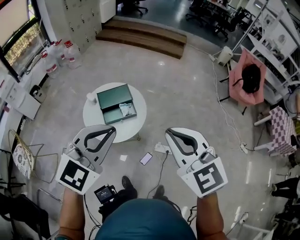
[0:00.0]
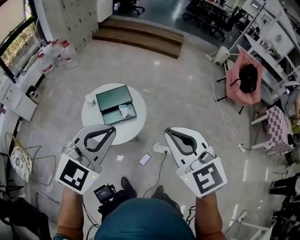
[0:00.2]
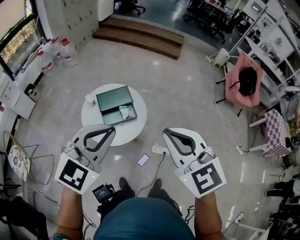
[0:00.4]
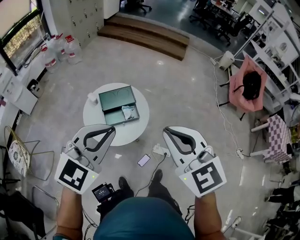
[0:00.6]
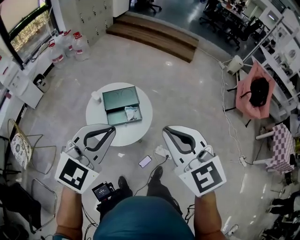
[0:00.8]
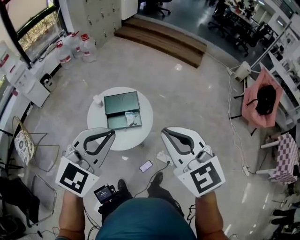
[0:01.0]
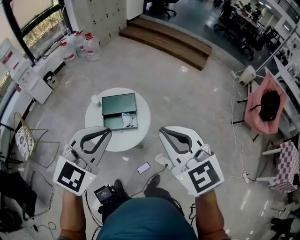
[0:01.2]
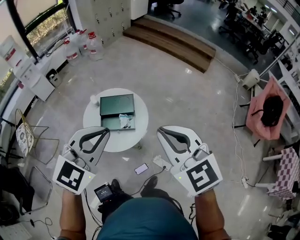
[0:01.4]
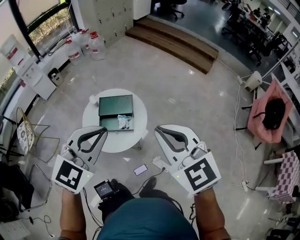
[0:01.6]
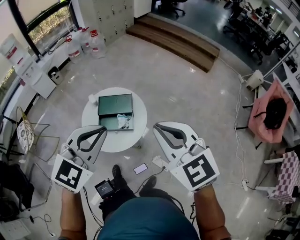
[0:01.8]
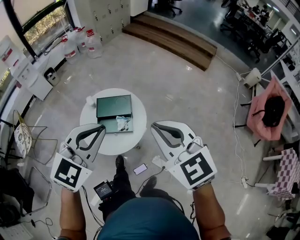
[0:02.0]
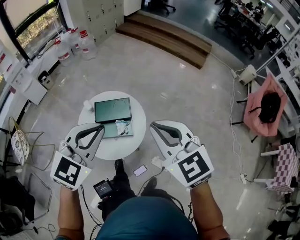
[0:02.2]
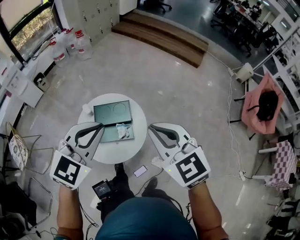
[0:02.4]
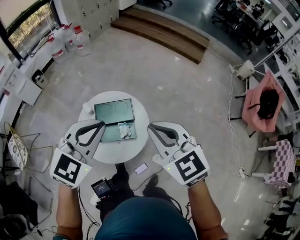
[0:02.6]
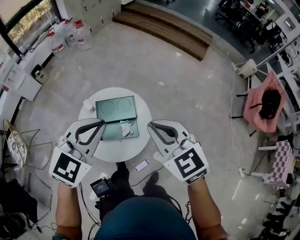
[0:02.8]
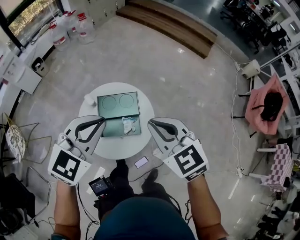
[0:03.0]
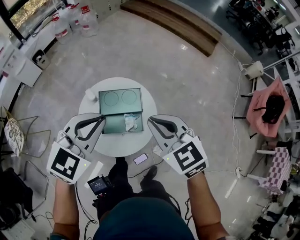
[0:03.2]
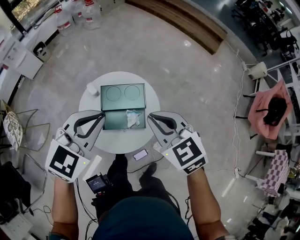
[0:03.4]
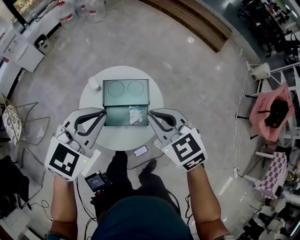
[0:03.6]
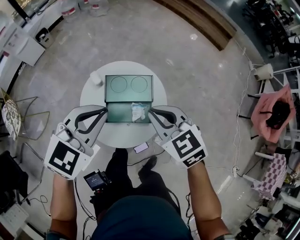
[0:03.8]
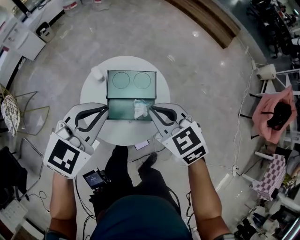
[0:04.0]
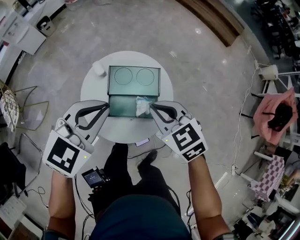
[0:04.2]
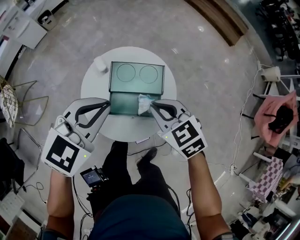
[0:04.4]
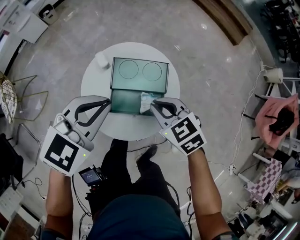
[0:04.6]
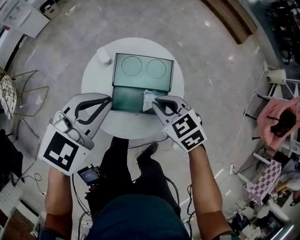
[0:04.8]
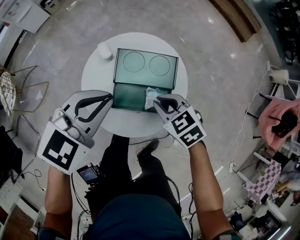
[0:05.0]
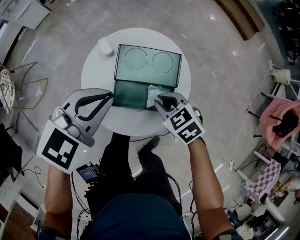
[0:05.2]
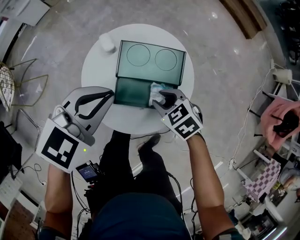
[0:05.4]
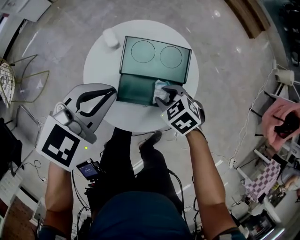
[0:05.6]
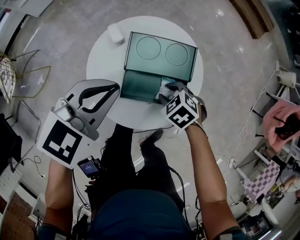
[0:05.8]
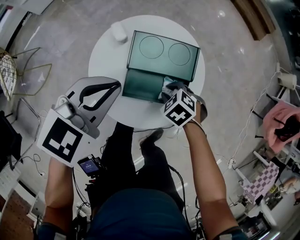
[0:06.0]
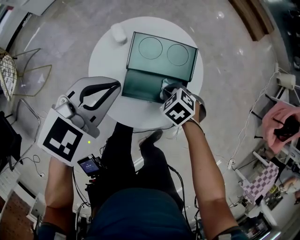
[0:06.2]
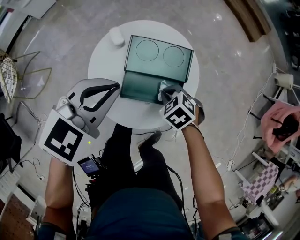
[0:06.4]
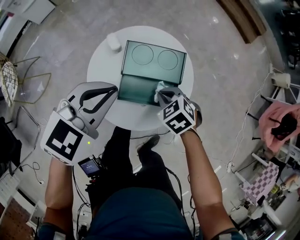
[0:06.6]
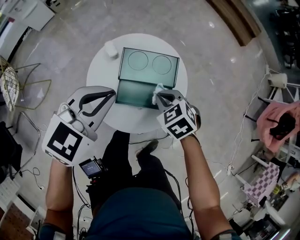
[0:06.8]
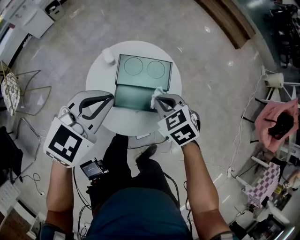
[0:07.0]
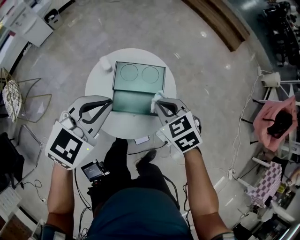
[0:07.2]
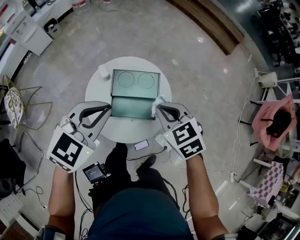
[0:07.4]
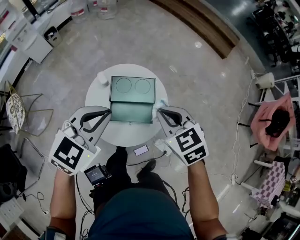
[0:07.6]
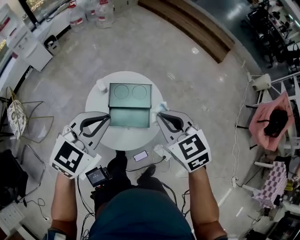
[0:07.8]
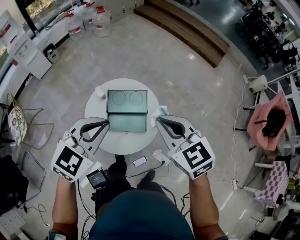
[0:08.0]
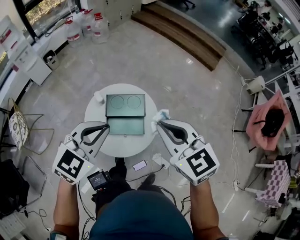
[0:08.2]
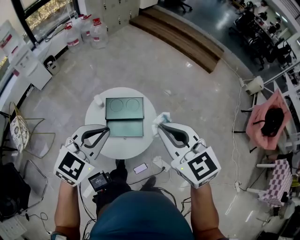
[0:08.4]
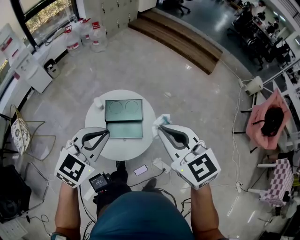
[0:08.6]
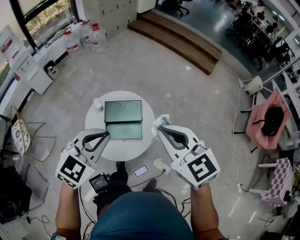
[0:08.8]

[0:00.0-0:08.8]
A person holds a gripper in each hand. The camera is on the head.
0:00.0 to 0:01.4: Both grippers travel together forward and to the right, some 20 cm.
0:01.4 to 0:03.0: The right gripper heads forward, downward and to the left, covering roughly 30 cm. The left gripper heads forward, to the left and downward, covering approximately 30 cm.
0:03.0 to 0:04.4: Both grippers move downward and to the left, approximately 25 cm. The right gripper swivels approximately 20 degrees.
0:04.4 to 0:05.8: The left gripper is displaced downward by roughly 10 cm; the right gripper heads downward, covering roughly 25 cm, rotates some 30 degrees, and opens.
0:05.8 to 0:07.4: The right gripper heads upward, covering about 30 cm, rotates about 30 degrees, and closes; the left gripper shifts approximately 20 cm upward.
0:07.4 to 0:08.8: The right gripper goes about 30 cm upward and backward, and rotates about 30 degrees. Meanwhile the left gripper travels upward, backward and to the right by about 20 cm.

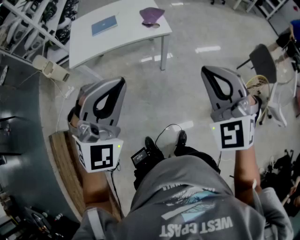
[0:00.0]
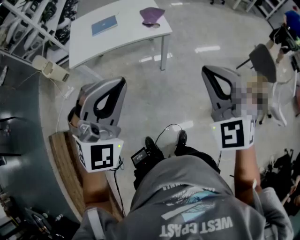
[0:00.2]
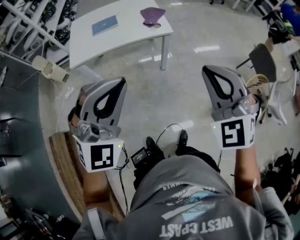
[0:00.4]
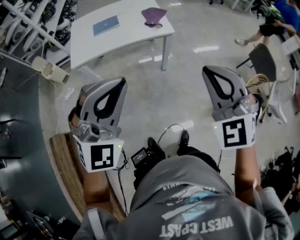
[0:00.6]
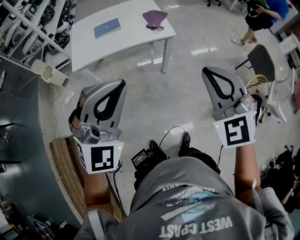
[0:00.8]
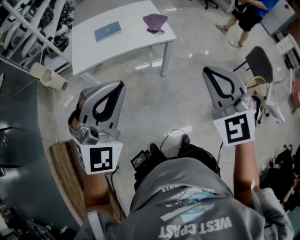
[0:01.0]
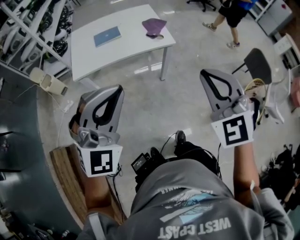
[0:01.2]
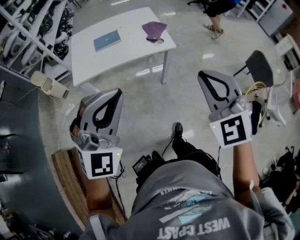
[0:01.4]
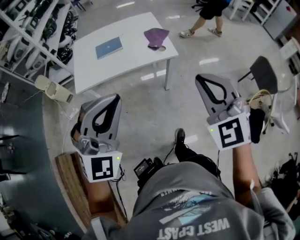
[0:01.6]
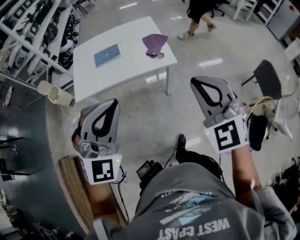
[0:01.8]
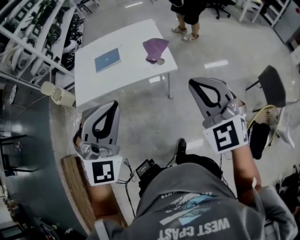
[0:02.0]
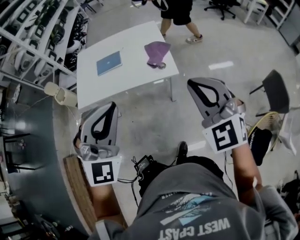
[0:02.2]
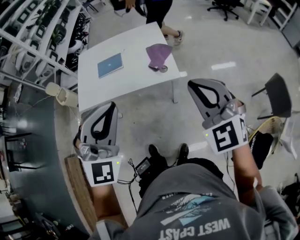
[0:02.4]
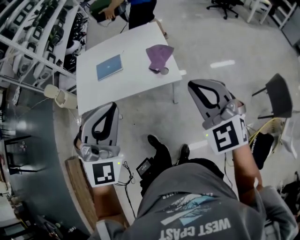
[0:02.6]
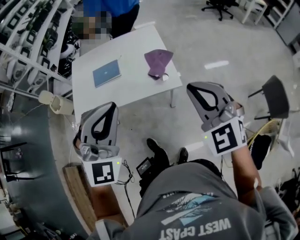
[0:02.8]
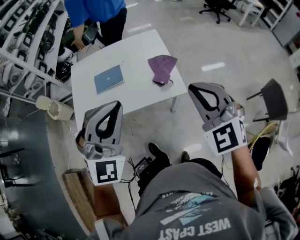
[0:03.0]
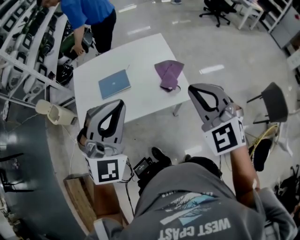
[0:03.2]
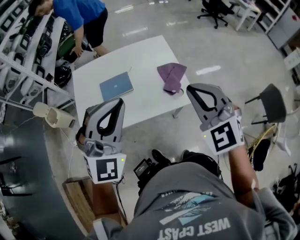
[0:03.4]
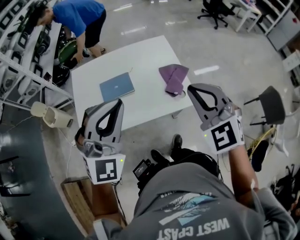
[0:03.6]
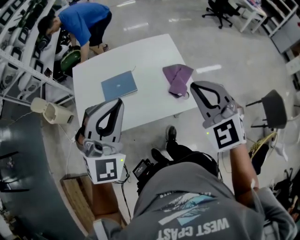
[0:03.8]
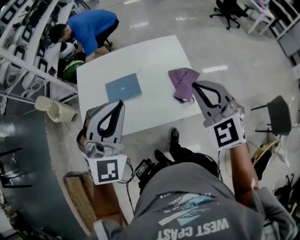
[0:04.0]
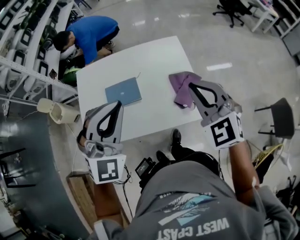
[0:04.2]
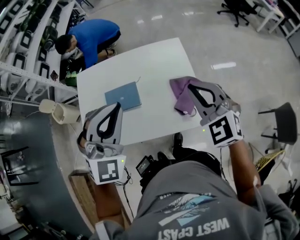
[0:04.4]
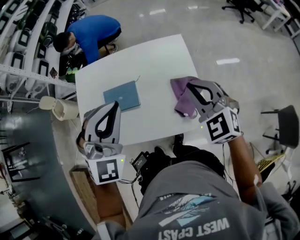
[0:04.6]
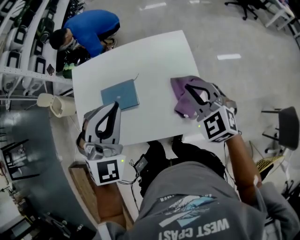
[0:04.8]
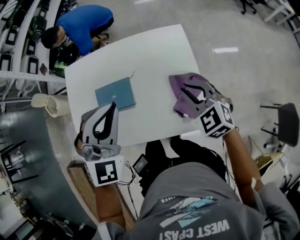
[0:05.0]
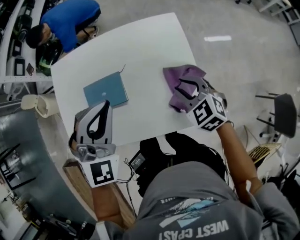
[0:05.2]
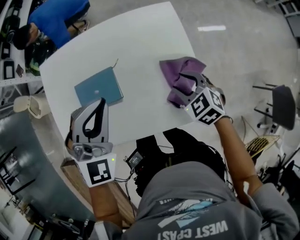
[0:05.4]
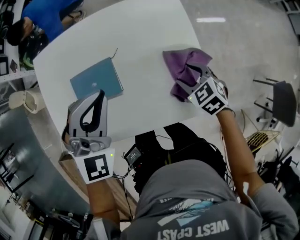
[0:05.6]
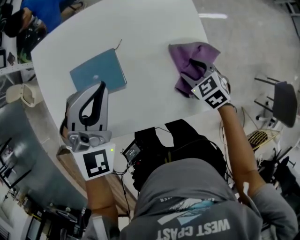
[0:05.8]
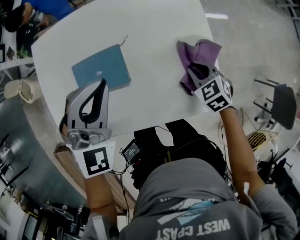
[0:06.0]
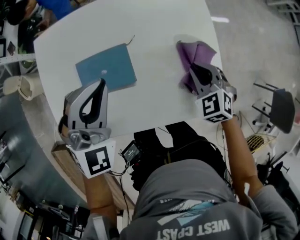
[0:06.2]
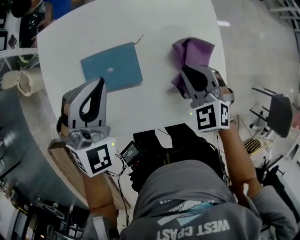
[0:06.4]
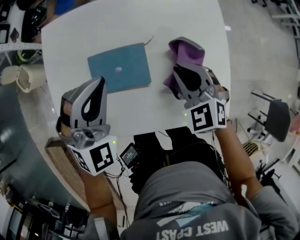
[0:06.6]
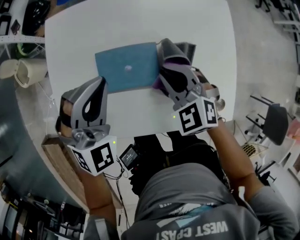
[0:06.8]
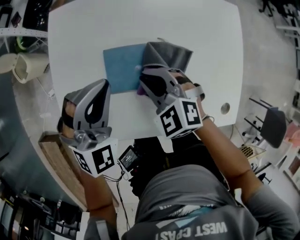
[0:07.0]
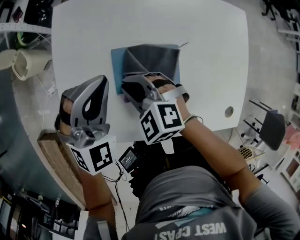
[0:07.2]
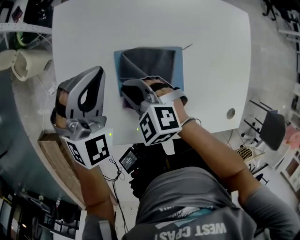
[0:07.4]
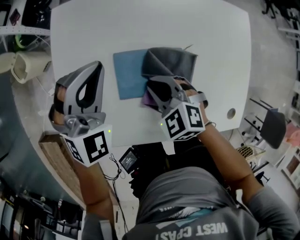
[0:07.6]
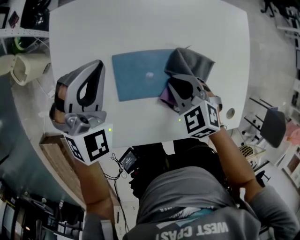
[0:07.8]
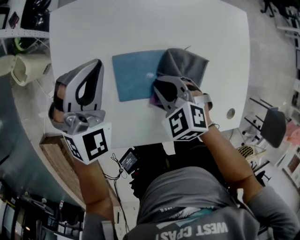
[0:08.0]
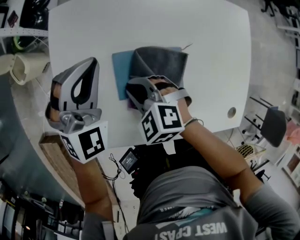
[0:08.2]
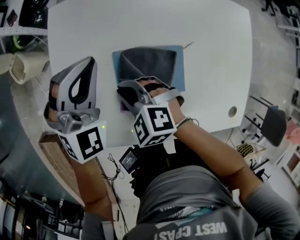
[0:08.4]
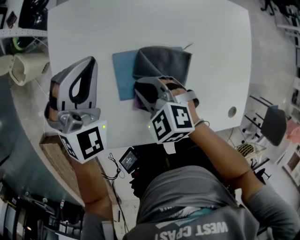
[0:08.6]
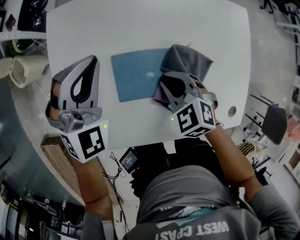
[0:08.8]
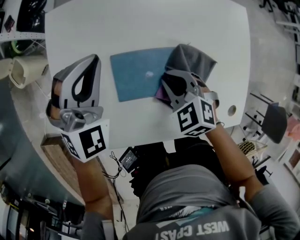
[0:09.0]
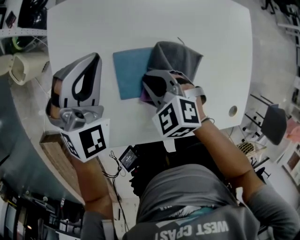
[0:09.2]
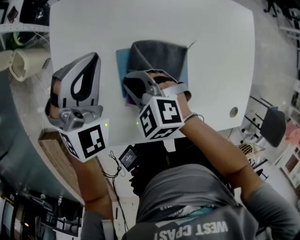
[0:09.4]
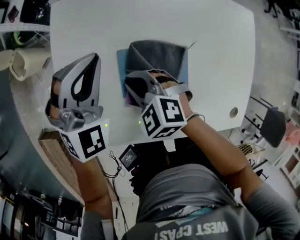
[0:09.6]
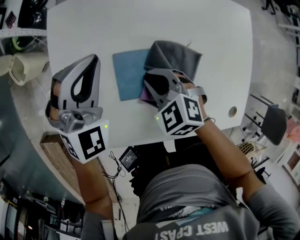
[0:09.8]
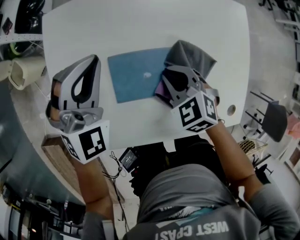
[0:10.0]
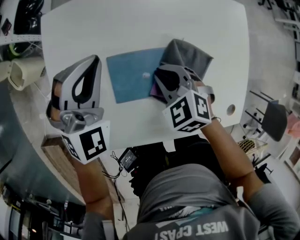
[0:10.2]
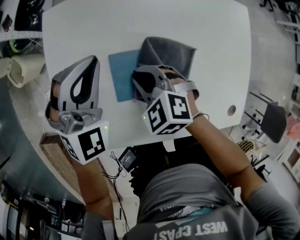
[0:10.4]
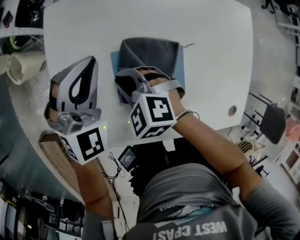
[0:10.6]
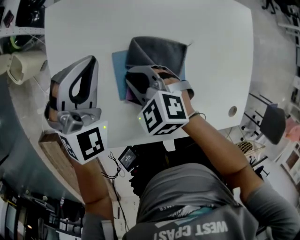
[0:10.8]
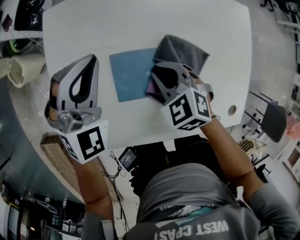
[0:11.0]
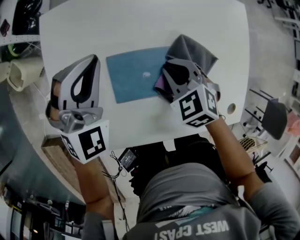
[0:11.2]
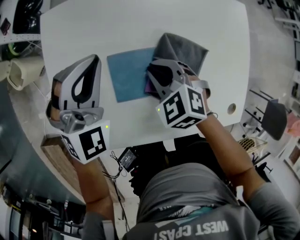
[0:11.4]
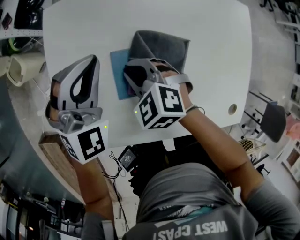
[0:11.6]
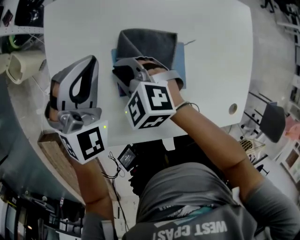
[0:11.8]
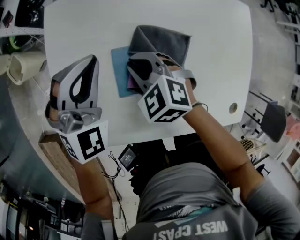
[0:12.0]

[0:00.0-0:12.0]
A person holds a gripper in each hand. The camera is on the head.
0:00.0 to 0:01.6: Both grippers move forward and to the left, some 10 cm.
0:01.6 to 0:03.0: Both grippers move forward, approximately 25 cm.
0:03.0 to 0:04.4: The two grippers go about 20 cm forward.
0:04.4 to 0:06.0: The right gripper heads downward, covering approximately 35 cm, points its fingers about 30 degrees further downward, and opens, then closes again, while the left gripper is displaced downward and forward by approximately 20 cm.
0:06.0 to 0:07.6: The right gripper goes upward and returns, about 10 cm each way, and swivels some 30 degrees. Meanwhile the left gripper shifts by about 25 cm.
0:07.6 to 0:09.0: The right gripper goes left and right, roughly 15 cm each way, reversing 2 times.
0:09.0 to 0:10.4: The right gripper goes left and right, about 15 cm each way, reversing 2 times.
0:10.4 to 0:12.0: The right gripper goes left and right, some 15 cm each way, reversing 3 times.

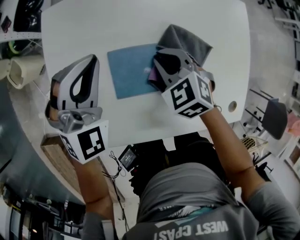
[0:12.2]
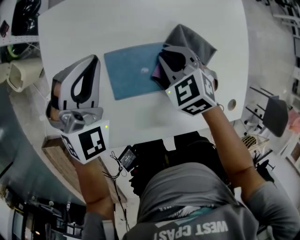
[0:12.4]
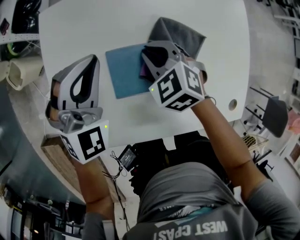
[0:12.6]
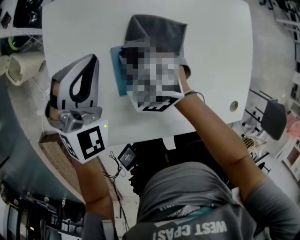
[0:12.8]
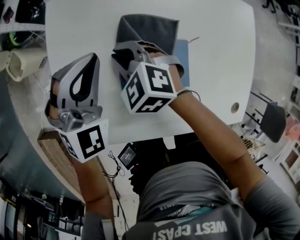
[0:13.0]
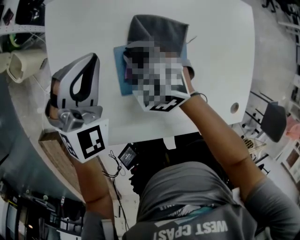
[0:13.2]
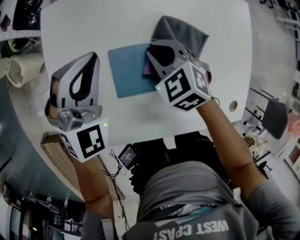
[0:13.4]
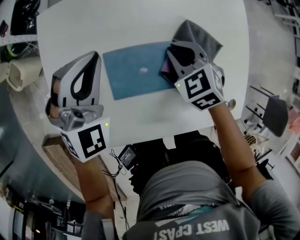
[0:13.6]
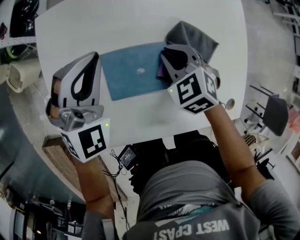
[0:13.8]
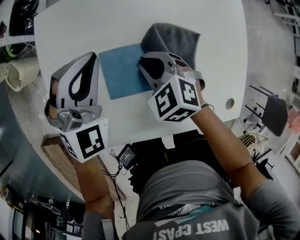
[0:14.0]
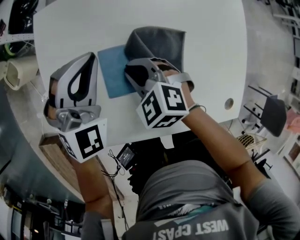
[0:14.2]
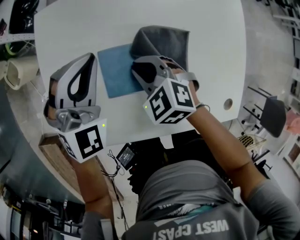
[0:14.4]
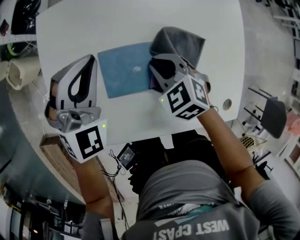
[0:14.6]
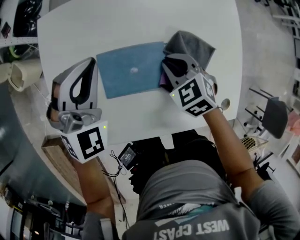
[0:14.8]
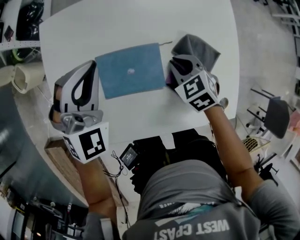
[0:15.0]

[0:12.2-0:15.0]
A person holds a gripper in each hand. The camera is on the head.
0:12.2 to 0:13.6: The right gripper reaches roughly 15 cm to the left, then returns.
0:13.6 to 0:15.0: The right gripper travels to the left and back again, some 15 cm each way.
